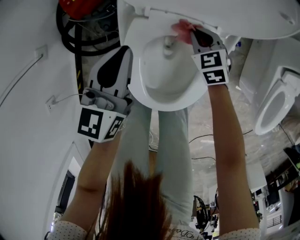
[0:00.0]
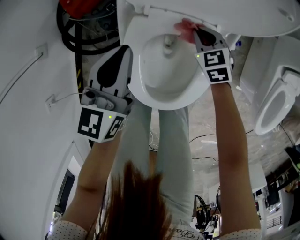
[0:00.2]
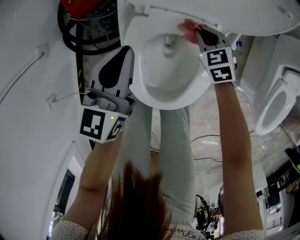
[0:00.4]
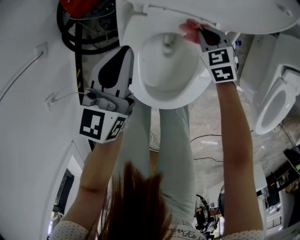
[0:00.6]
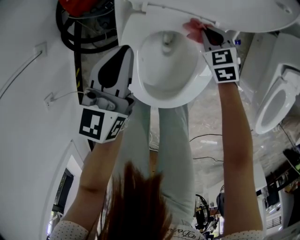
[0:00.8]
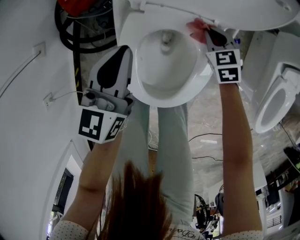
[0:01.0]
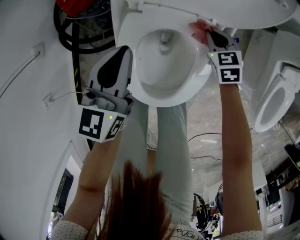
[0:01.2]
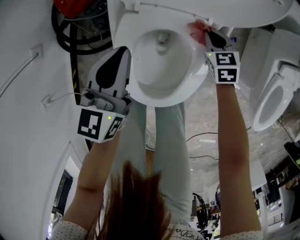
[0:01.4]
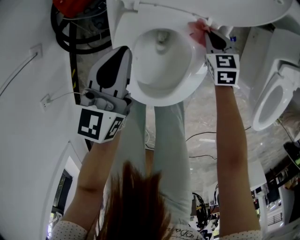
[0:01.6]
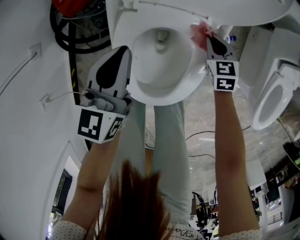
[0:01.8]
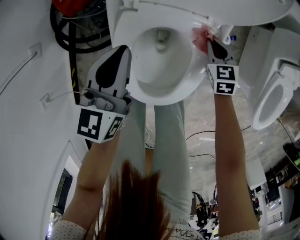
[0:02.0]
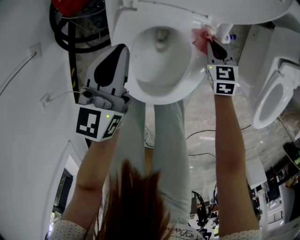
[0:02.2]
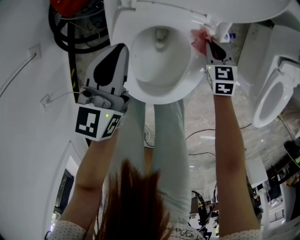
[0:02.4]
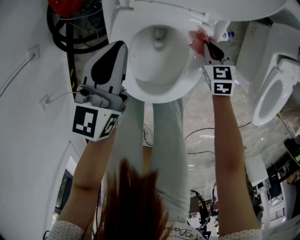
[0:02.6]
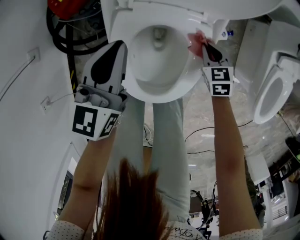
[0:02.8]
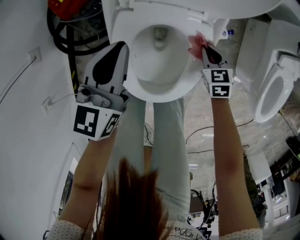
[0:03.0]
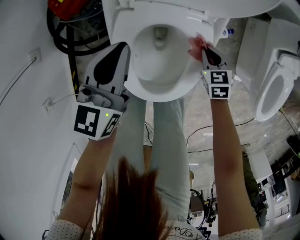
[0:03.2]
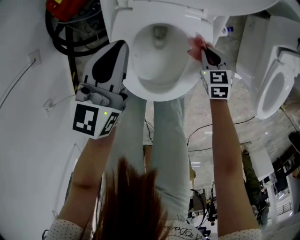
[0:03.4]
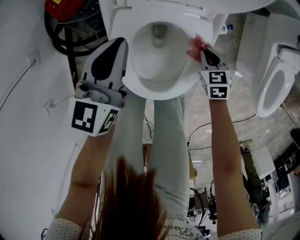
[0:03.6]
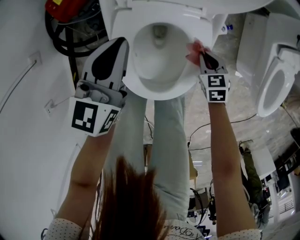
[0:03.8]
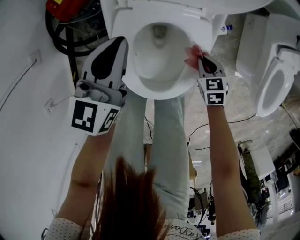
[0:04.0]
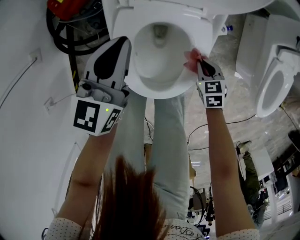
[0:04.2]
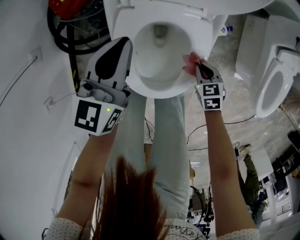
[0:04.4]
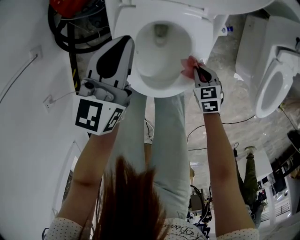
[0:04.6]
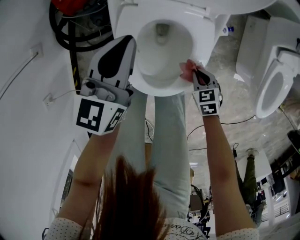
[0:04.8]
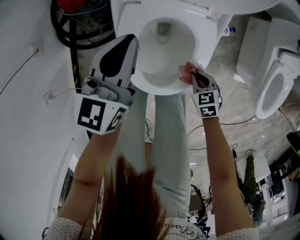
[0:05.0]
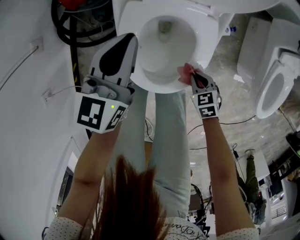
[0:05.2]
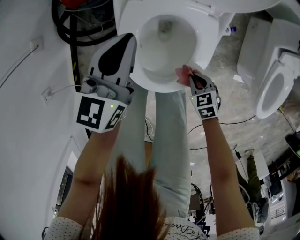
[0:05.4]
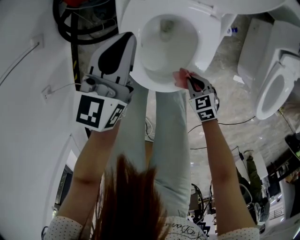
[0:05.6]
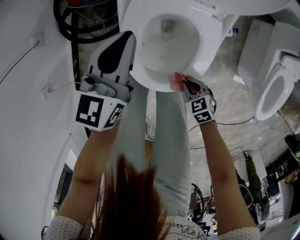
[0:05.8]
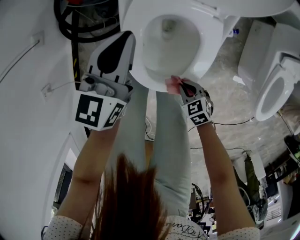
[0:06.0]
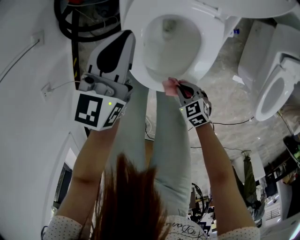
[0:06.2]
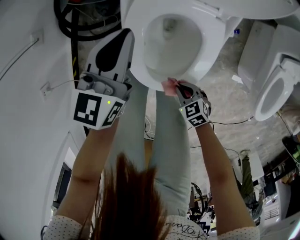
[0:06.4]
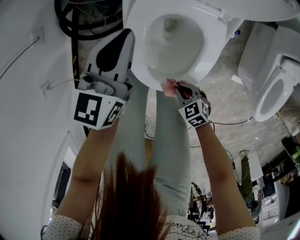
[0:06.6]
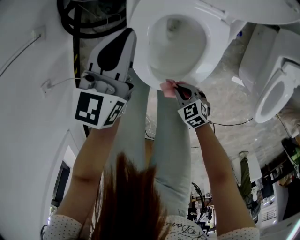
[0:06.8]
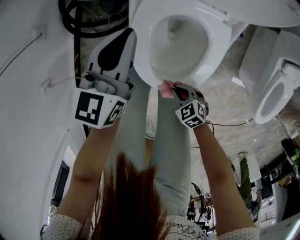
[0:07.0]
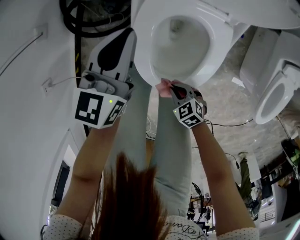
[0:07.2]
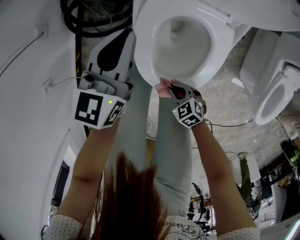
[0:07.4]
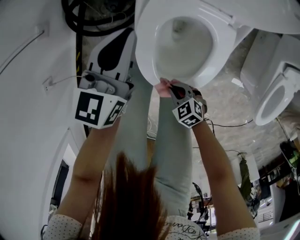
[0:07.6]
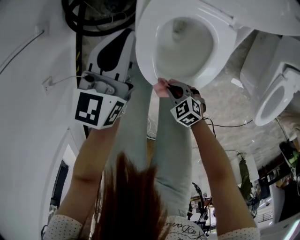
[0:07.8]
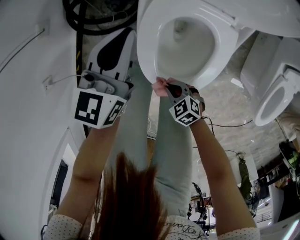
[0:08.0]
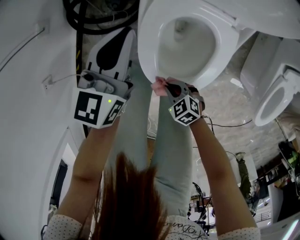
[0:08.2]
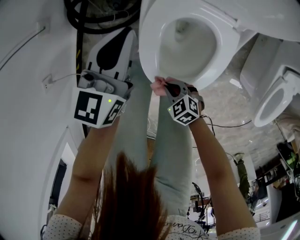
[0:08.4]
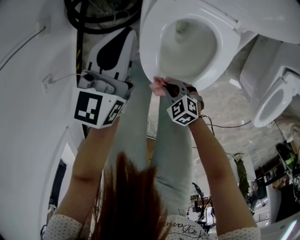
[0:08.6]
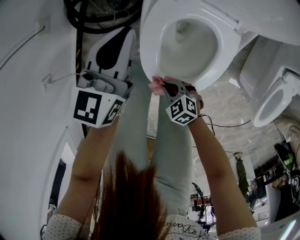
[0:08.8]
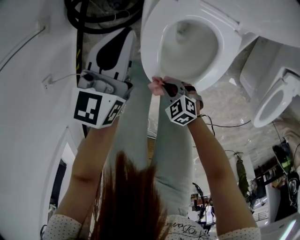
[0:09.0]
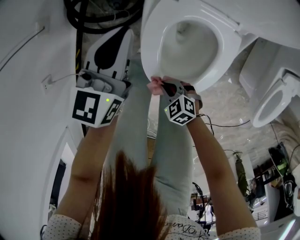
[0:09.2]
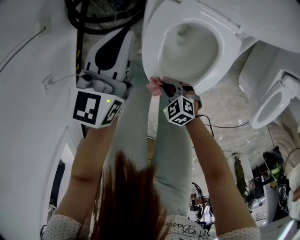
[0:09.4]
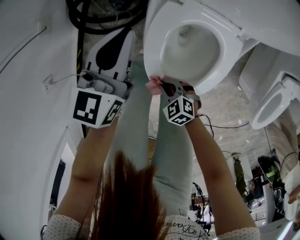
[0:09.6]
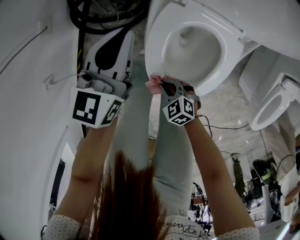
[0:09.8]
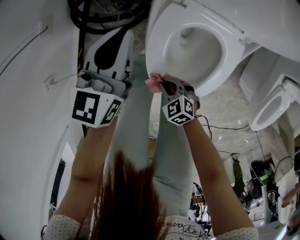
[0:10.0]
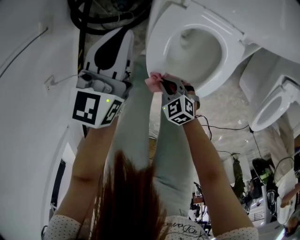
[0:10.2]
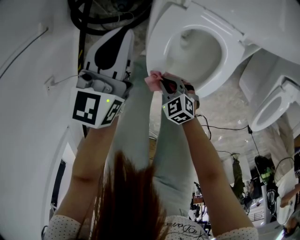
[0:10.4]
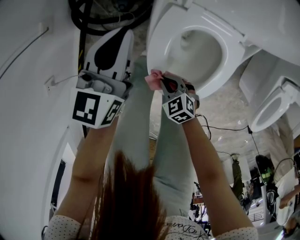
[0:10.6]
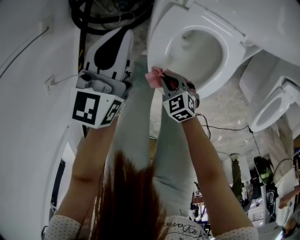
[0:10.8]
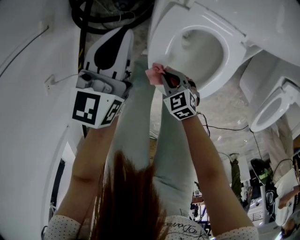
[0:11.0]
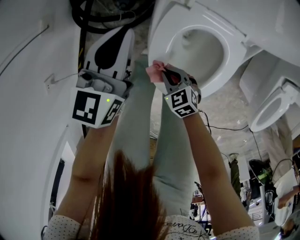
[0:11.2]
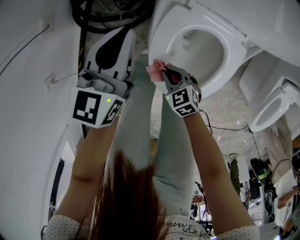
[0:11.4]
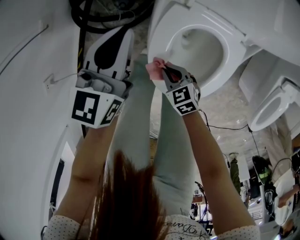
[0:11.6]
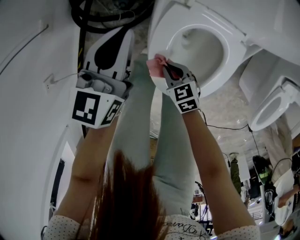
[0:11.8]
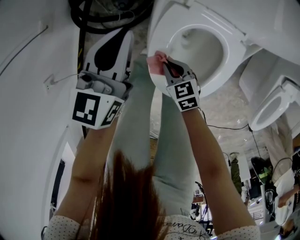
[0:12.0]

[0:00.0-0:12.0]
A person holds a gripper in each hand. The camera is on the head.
0:00.0 to 0:01.6: The right gripper shifts about 10 cm to the right.
0:01.6 to 0:03.0: The right gripper travels backward by approximately 10 cm.
0:03.0 to 0:04.4: The right gripper shifts approximately 10 cm backward.
0:04.4 to 0:06.0: The right gripper goes roughly 15 cm to the left and backward, and rotates about 20 degrees.
0:06.0 to 0:07.6: The right gripper is displaced to the left by approximately 10 cm, while the left gripper ends up roughly 5 cm from where it was.
0:07.6 to 0:09.0: The right gripper ends up about 5 cm from where it was.
0:09.0 to 0:10.4: The right gripper heads forward, covering about 5 cm.
0:10.4 to 0:12.0: The right gripper travels forward by roughly 5 cm.

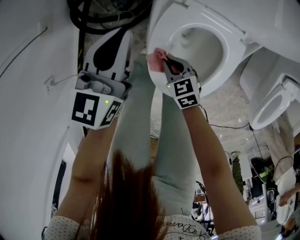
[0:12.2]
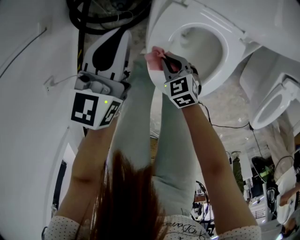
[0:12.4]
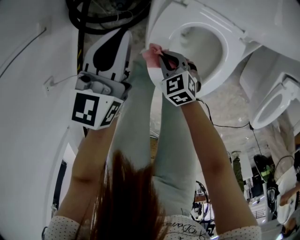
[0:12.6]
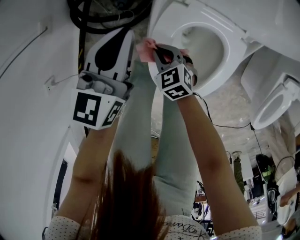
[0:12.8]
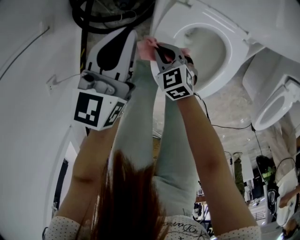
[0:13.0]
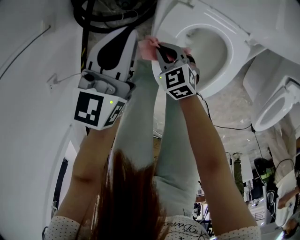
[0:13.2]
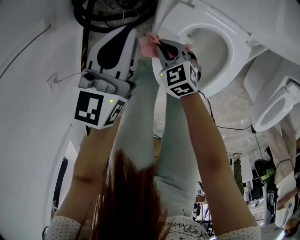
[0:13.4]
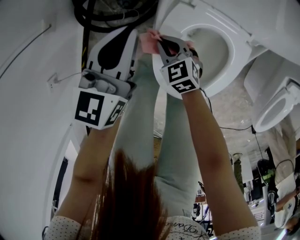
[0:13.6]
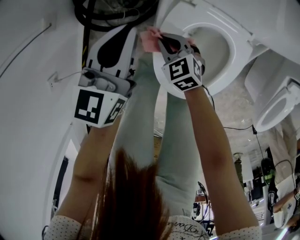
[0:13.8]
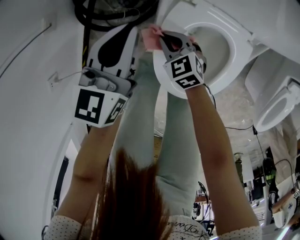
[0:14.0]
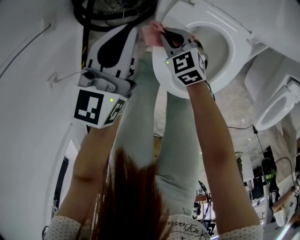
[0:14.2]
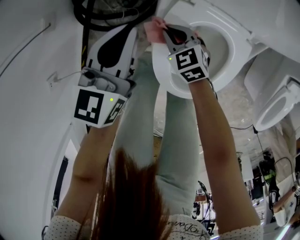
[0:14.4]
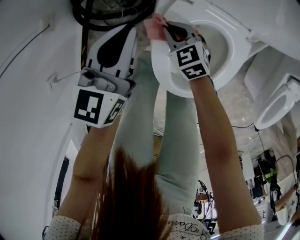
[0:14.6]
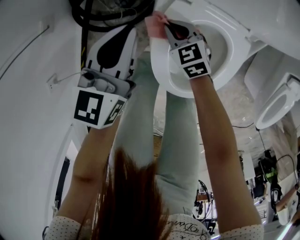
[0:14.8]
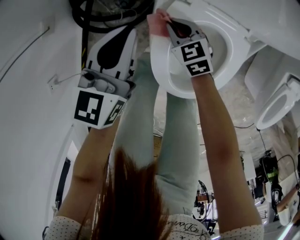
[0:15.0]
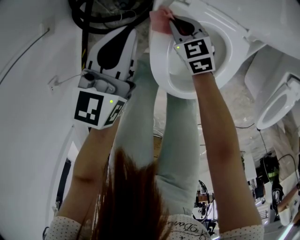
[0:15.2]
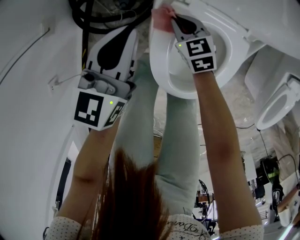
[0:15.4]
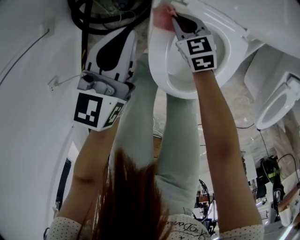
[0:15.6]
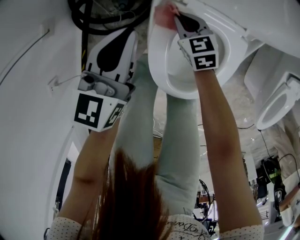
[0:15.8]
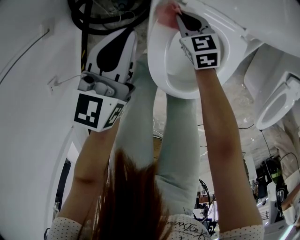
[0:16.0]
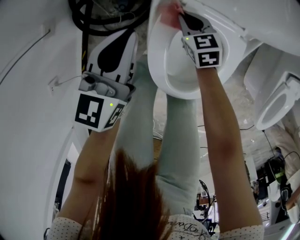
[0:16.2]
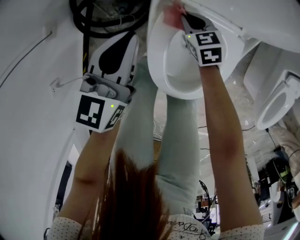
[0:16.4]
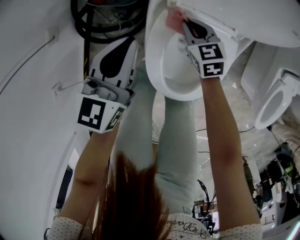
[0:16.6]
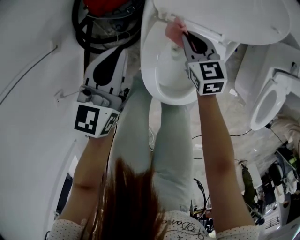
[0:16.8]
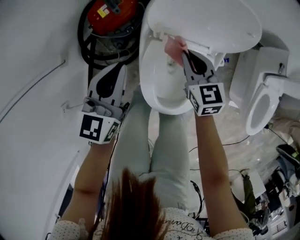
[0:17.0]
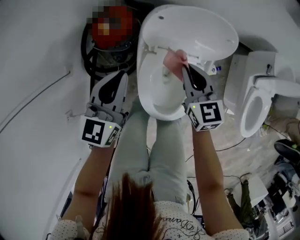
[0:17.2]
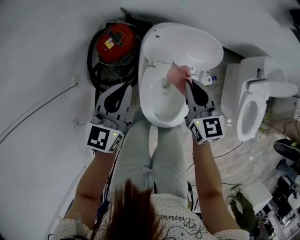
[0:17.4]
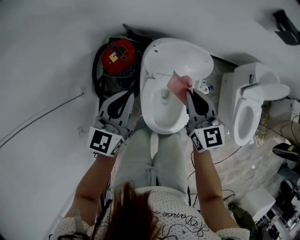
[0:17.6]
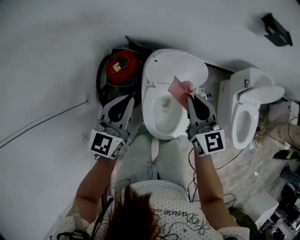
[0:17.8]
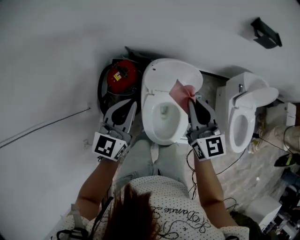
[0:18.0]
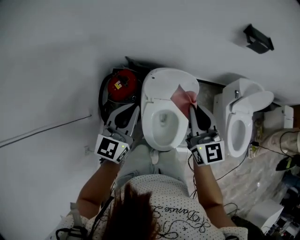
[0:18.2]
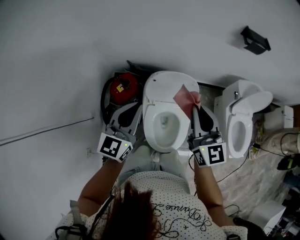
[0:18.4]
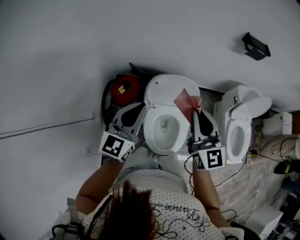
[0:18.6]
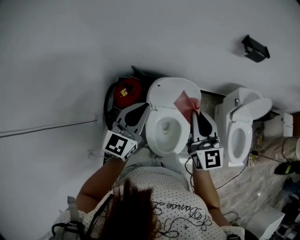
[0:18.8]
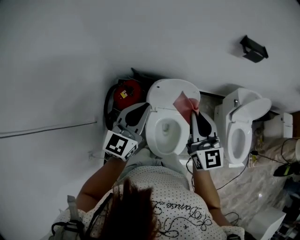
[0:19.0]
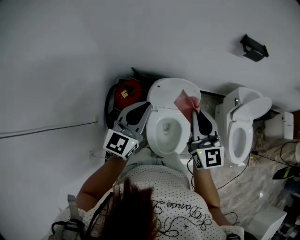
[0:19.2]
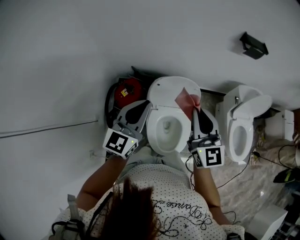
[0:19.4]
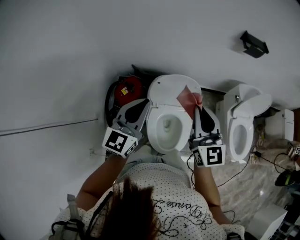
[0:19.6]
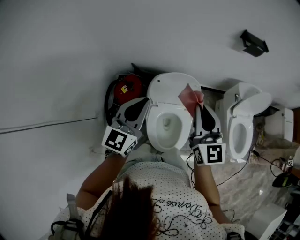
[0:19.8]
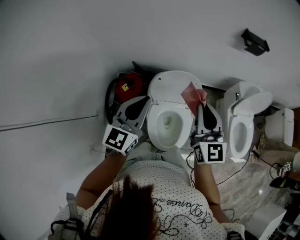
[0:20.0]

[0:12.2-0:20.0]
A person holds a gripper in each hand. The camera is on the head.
0:12.2 to 0:13.8: The right gripper goes some 10 cm forward.
0:13.8 to 0:15.4: The right gripper is displaced to the right and forward by some 10 cm.
0:15.4 to 0:16.8: The right gripper goes approximately 15 cm upward and to the right. The left gripper is displaced upward by about 5 cm.
0:16.8 to 0:18.4: The grippers both shift upward by roughly 40 cm. The left gripper changes its angle by about 20 degrees. The right gripper tilts its fingers roughly 40 degrees upward.
0:18.4 to 0:20.0: The grippers move only a little.

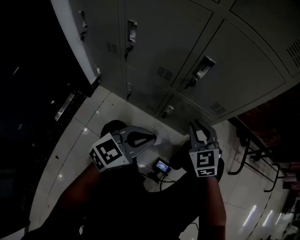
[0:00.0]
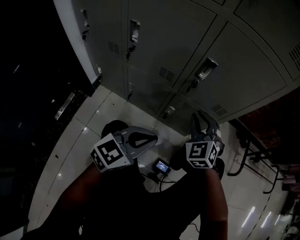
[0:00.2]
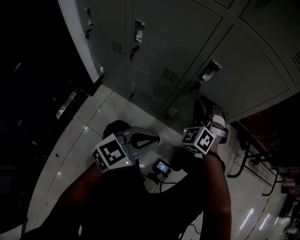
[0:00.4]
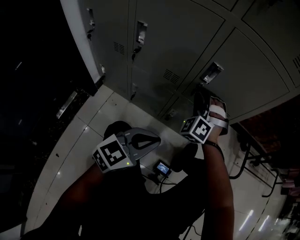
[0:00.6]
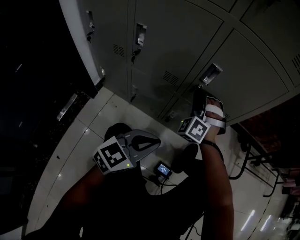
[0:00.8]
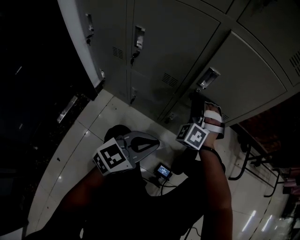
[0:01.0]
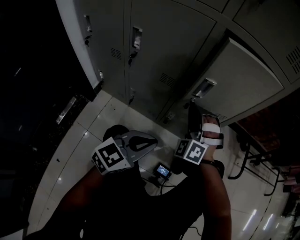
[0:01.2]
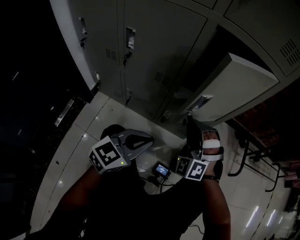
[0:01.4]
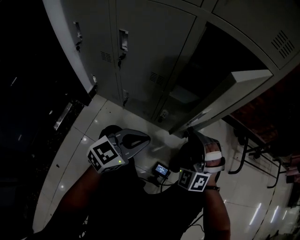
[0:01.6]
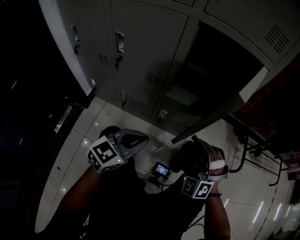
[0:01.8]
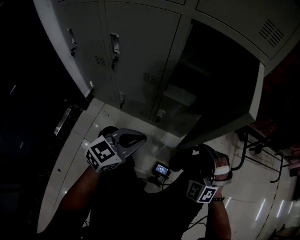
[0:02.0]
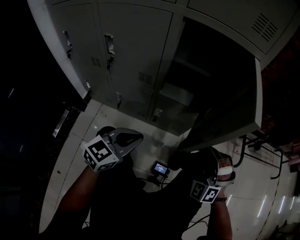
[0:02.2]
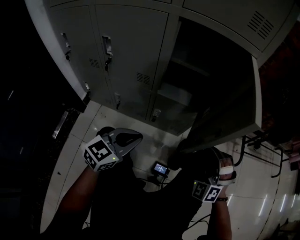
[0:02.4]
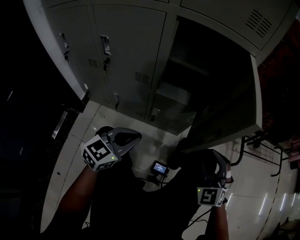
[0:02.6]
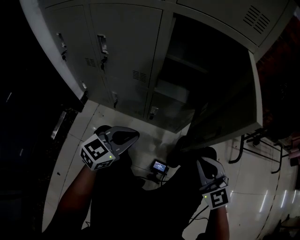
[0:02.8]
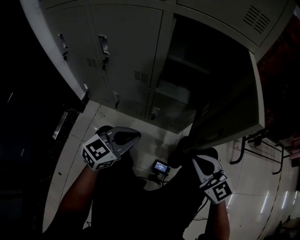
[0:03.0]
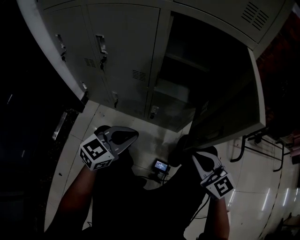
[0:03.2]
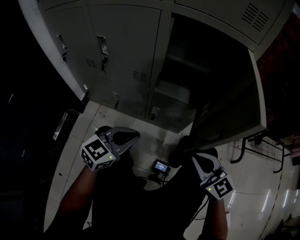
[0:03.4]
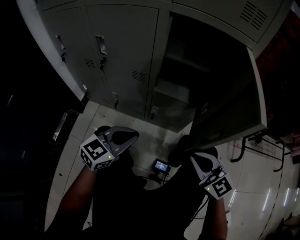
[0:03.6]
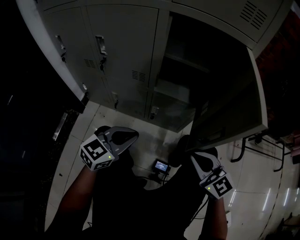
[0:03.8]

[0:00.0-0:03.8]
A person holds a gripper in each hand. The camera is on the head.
0:00.0 to 0:01.2: The right gripper moves to the left, roughly 5 cm, travels forward and back again, about 10 cm each way, and rotates around the line of its fingers by some 40 degrees, counterclockwise from behind.
0:01.2 to 0:02.6: The right gripper moves to the right and backward, approximately 25 cm, changes its angle by some 30 degrees, and opens its fingers.
0:02.6 to 0:03.8: The right gripper changes place by some 5 cm, changes its angle by some 50 degrees, and closes.
